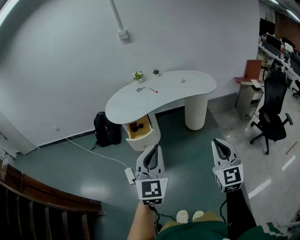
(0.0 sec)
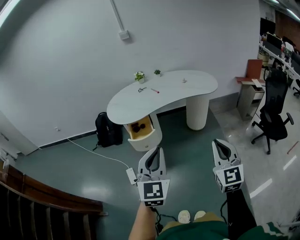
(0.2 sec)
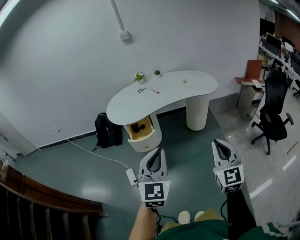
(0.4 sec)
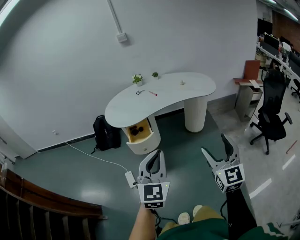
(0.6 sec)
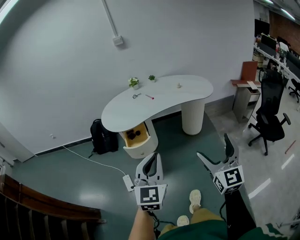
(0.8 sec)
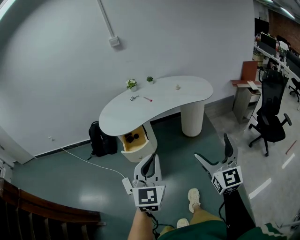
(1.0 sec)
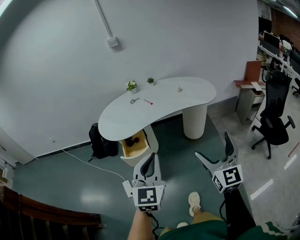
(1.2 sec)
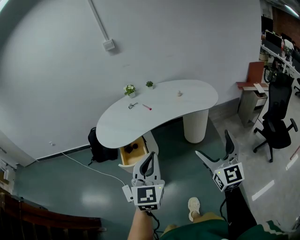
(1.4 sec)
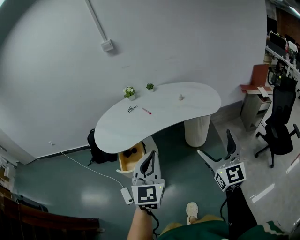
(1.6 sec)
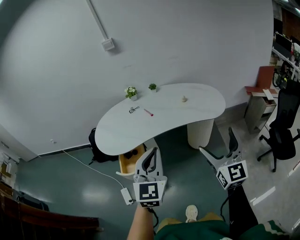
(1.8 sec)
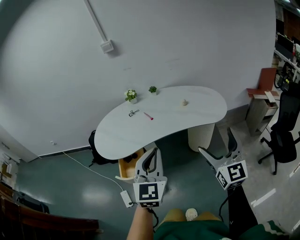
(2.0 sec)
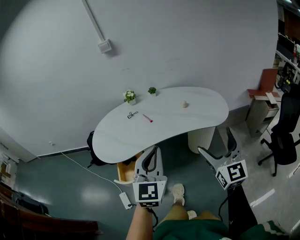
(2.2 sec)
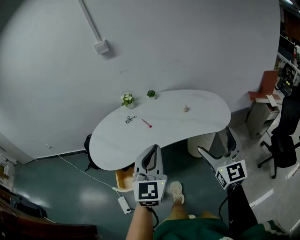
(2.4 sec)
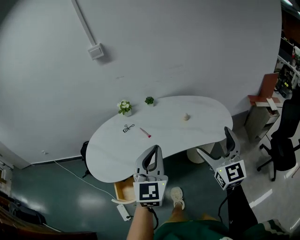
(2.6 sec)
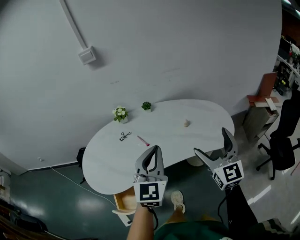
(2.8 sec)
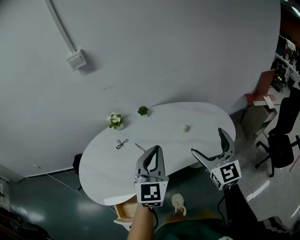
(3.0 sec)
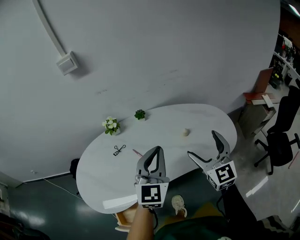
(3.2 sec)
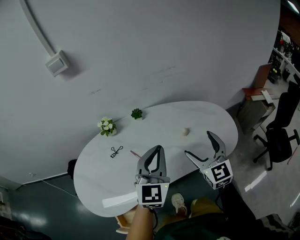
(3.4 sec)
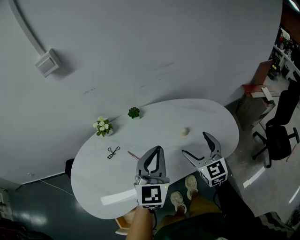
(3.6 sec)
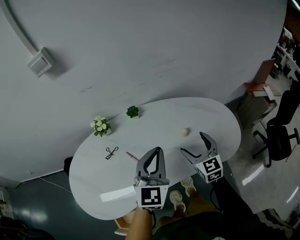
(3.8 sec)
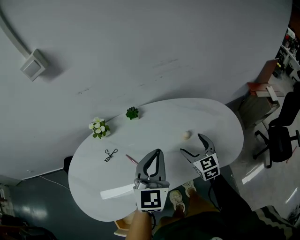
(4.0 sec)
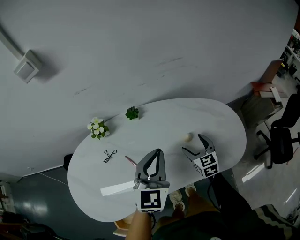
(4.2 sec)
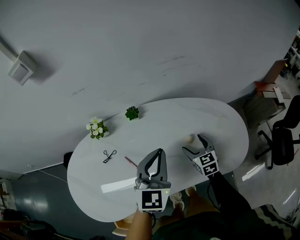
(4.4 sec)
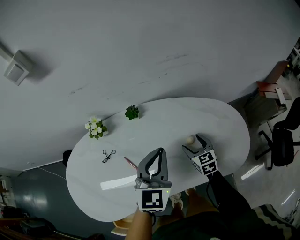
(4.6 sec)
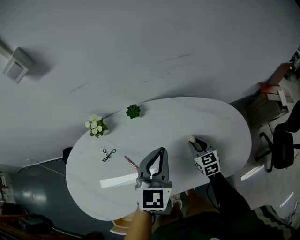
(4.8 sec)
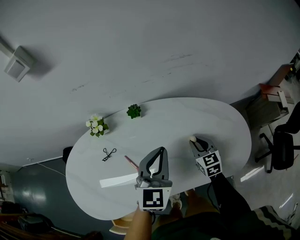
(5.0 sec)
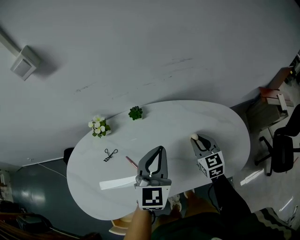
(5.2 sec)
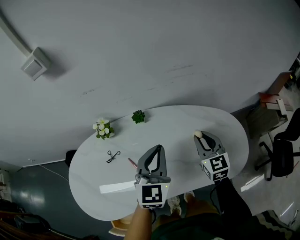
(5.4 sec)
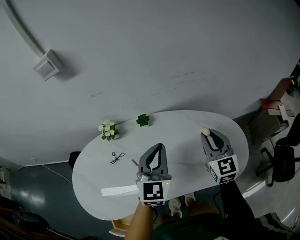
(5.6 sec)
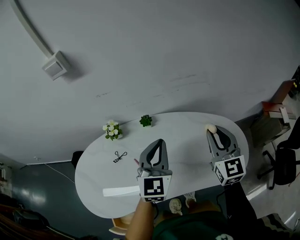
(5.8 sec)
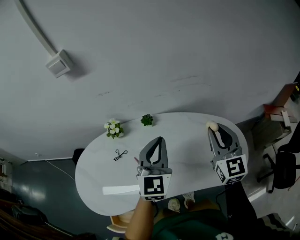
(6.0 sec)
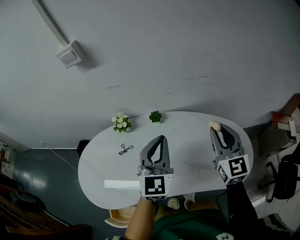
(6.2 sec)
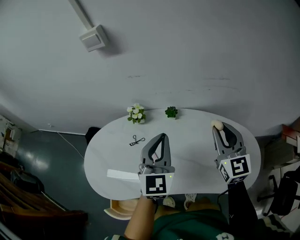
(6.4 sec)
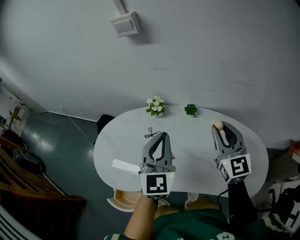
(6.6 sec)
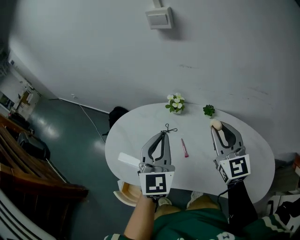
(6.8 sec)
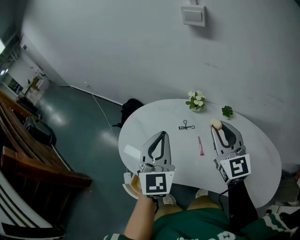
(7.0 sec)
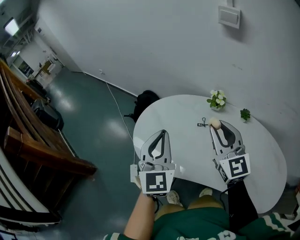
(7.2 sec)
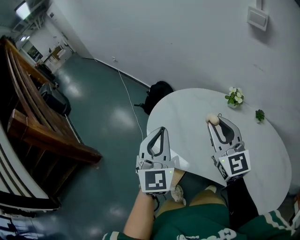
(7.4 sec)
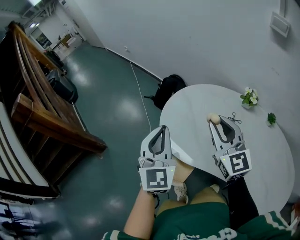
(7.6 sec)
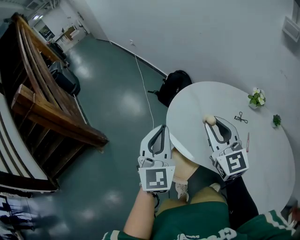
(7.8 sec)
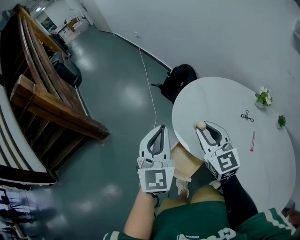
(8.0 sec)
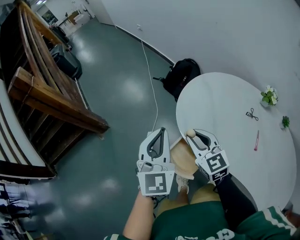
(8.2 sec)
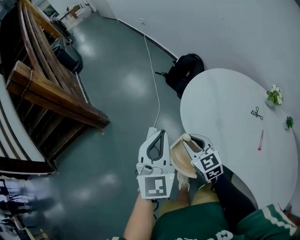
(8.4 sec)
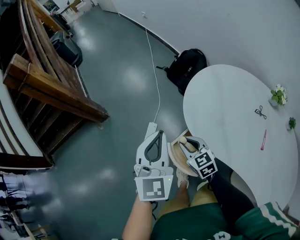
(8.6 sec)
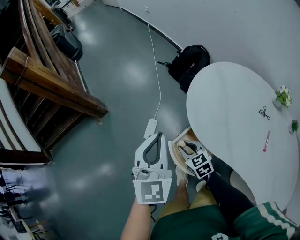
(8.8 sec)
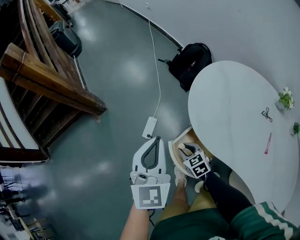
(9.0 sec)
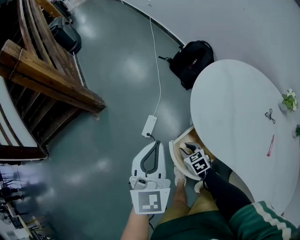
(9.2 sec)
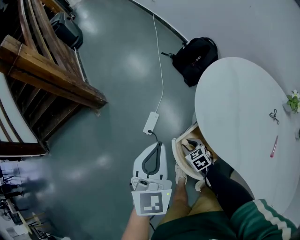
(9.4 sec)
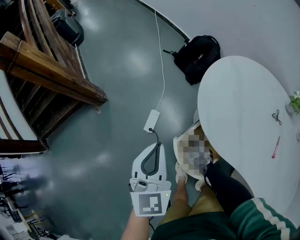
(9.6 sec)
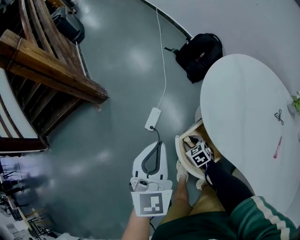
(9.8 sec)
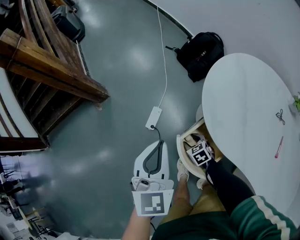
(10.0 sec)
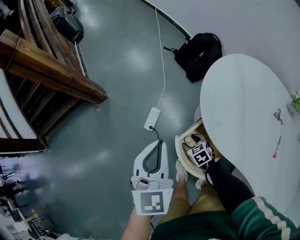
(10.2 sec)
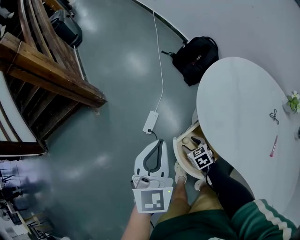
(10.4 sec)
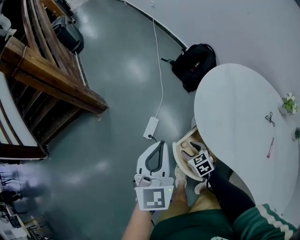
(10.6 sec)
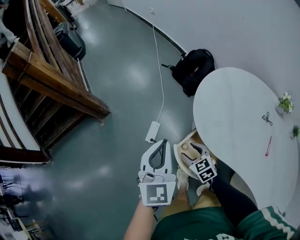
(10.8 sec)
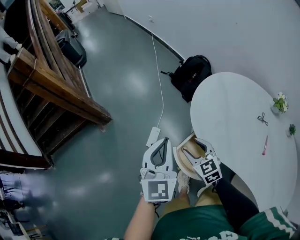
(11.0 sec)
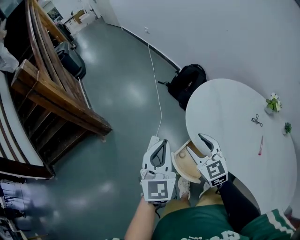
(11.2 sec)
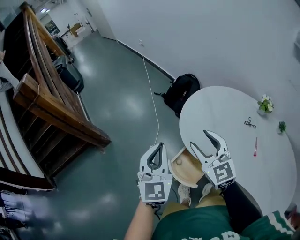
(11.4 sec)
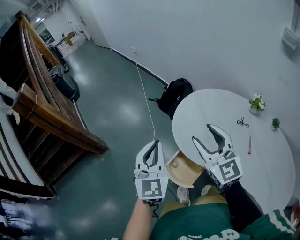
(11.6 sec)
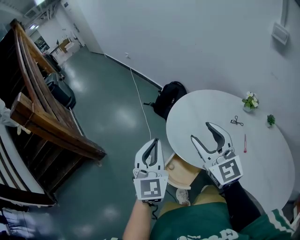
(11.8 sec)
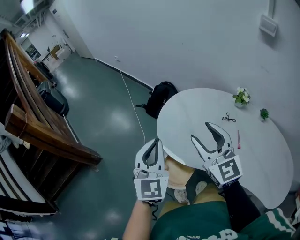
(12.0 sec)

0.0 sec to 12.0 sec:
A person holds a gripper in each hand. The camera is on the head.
0.0 sec to 1.6 sec: The grippers both shift forward by some 25 cm. The right gripper opens.
1.6 sec to 3.0 sec: Both grippers are carried forward, roughly 40 cm.
3.0 sec to 4.4 sec: The right gripper heads downward and forward, covering about 35 cm, and points its fingers roughly 30 degrees further downward, while the left gripper shifts some 20 cm forward and downward.
4.4 sec to 6.0 sec: The left gripper moves upward, roughly 10 cm. The right gripper heads upward, covering approximately 30 cm, angles its fingers upward, by some 30 degrees, and closes up.
6.0 sec to 7.6 sec: The two grippers travel together, approximately 60 cm. The right gripper rotates approximately 60 degrees; the left gripper swivels about 60 degrees.
7.6 sec to 9.0 sec: The left gripper moves to the left and downward, approximately 25 cm, while the right gripper shifts about 50 cm downward and to the left, and tilts its fingers roughly 40 degrees downward.
9.0 sec to 10.4 sec: The right gripper is displaced downward by approximately 5 cm.
10.4 sec to 12.0 sec: The right gripper travels upward by approximately 50 cm, and points its fingers approximately 50 degrees further upward. Meanwhile the left gripper travels upward by some 15 cm, and turns by roughly 20 degrees.

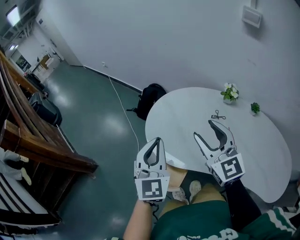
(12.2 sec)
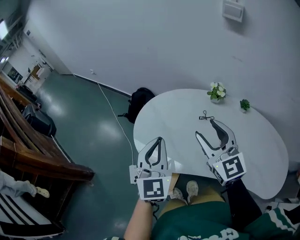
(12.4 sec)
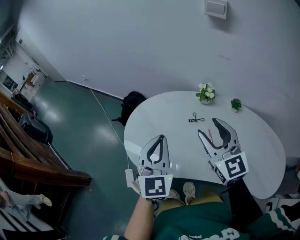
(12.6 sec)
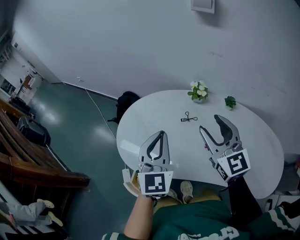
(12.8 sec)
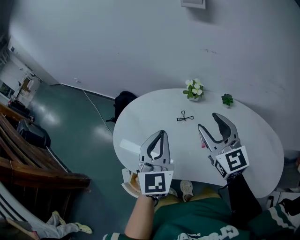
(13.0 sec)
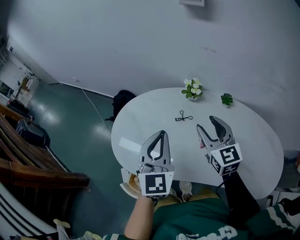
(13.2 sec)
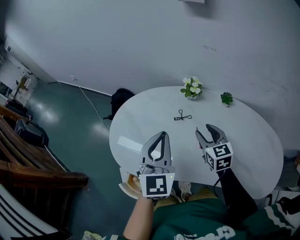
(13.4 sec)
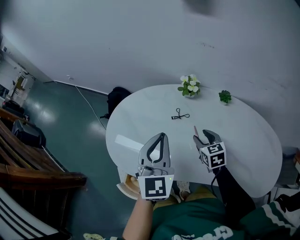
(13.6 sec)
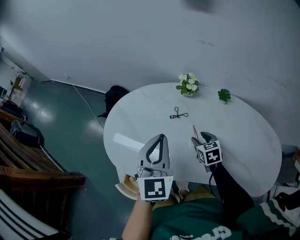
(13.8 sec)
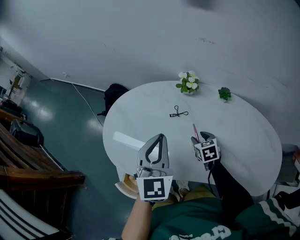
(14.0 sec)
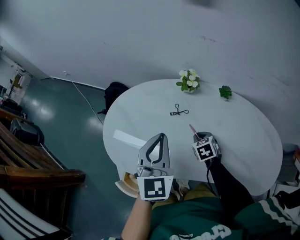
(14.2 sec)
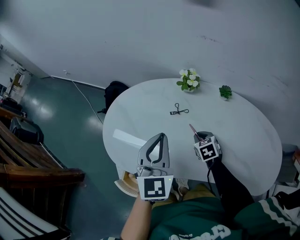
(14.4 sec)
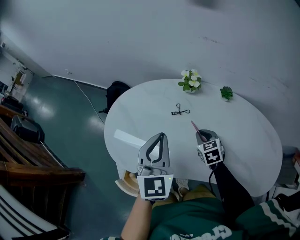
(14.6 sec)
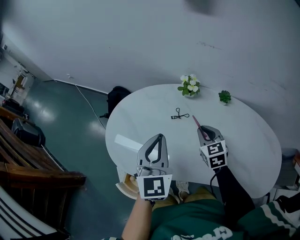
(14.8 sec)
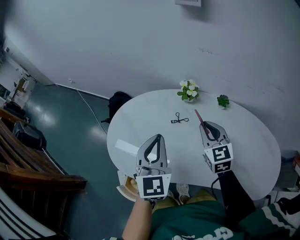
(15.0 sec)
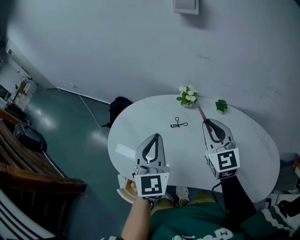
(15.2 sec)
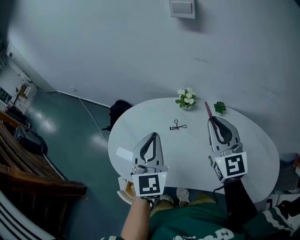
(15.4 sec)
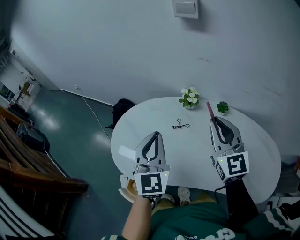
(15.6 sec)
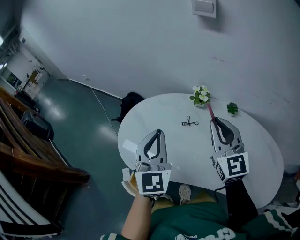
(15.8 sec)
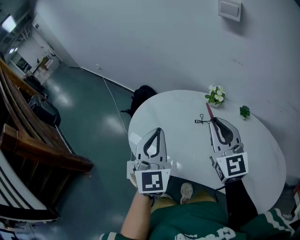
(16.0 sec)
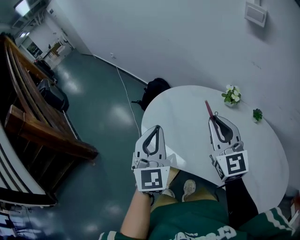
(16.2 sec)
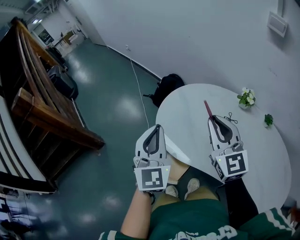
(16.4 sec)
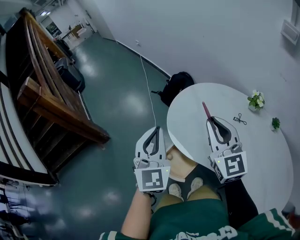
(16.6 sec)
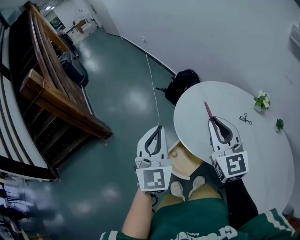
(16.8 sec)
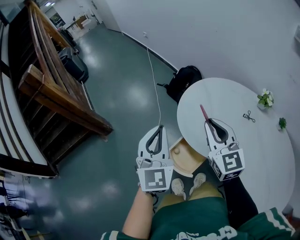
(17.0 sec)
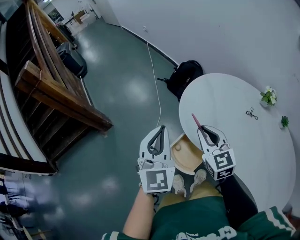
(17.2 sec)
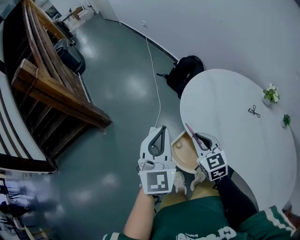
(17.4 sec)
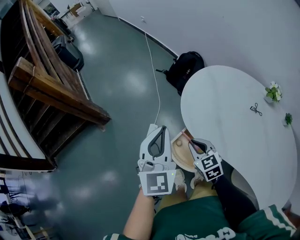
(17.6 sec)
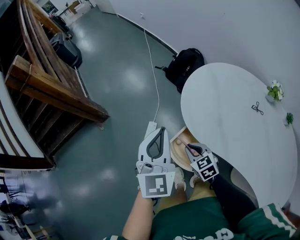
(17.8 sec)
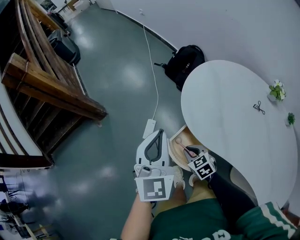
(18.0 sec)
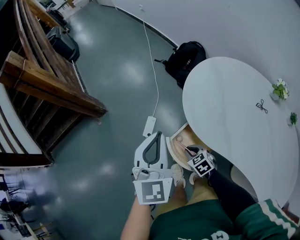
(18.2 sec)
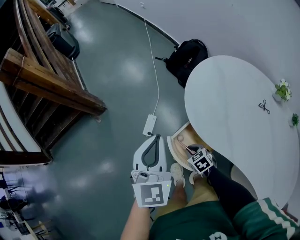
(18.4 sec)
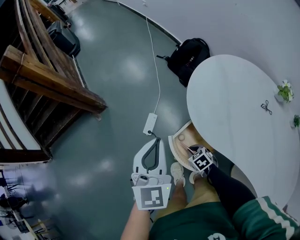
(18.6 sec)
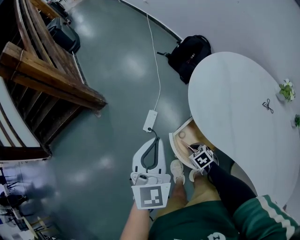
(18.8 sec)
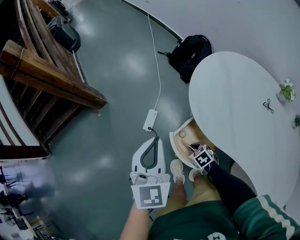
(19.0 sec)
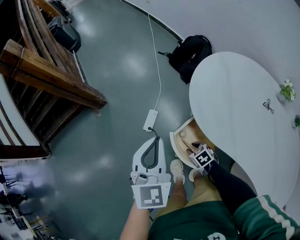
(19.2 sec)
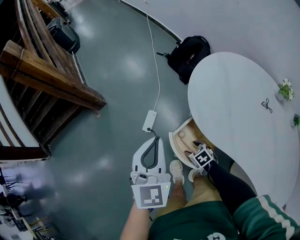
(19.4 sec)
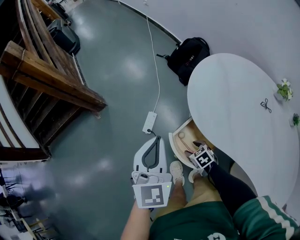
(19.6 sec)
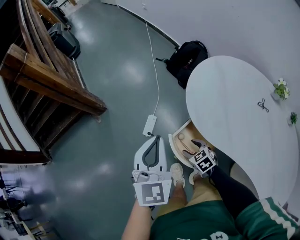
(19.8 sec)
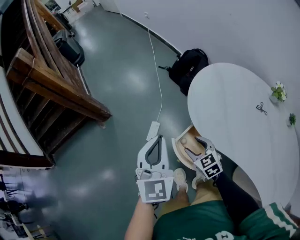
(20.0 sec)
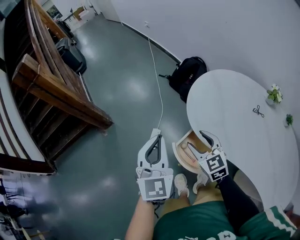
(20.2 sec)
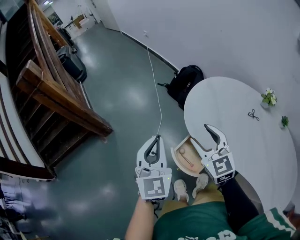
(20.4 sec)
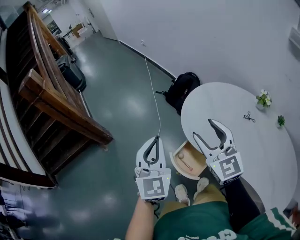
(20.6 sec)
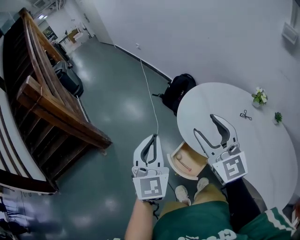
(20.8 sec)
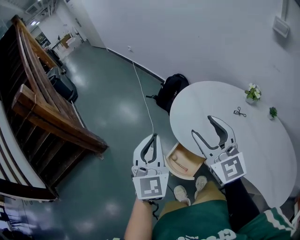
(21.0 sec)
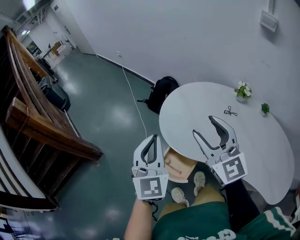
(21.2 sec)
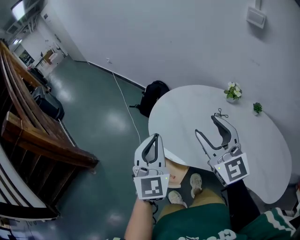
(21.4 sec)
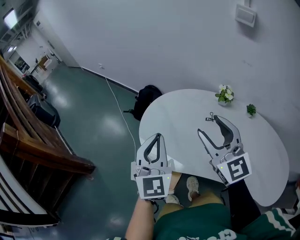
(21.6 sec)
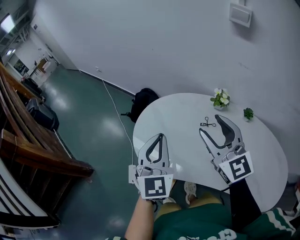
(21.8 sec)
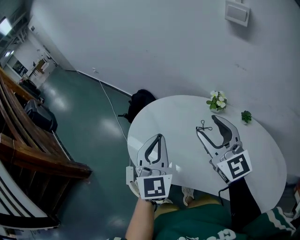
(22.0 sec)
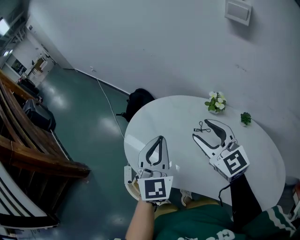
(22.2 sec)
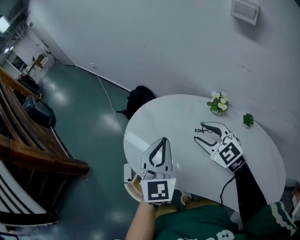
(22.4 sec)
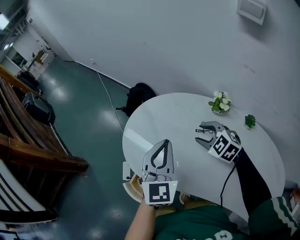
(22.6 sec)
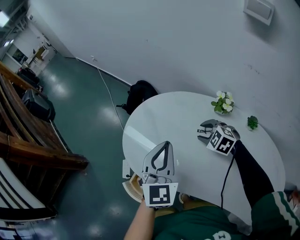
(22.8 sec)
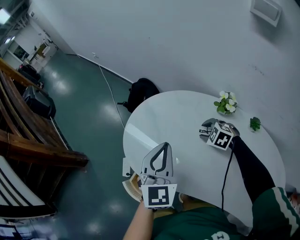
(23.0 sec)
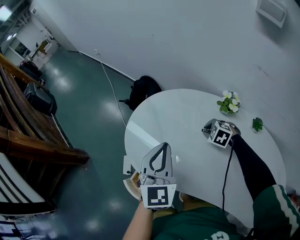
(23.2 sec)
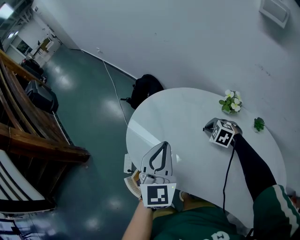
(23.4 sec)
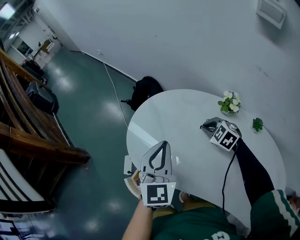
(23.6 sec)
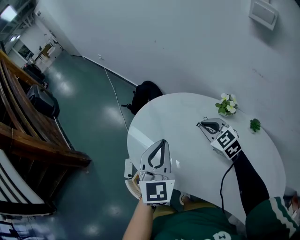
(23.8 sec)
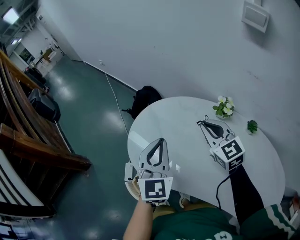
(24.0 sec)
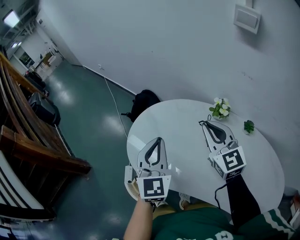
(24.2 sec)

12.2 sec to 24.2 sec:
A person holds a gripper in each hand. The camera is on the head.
12.2 sec to 13.8 sec: The right gripper goes about 40 cm downward and to the right, and points its fingers about 40 degrees further downward; the left gripper shifts roughly 25 cm to the right.
13.8 sec to 15.2 sec: The right gripper goes some 25 cm upward, and points its fingers approximately 40 degrees further upward.
15.2 sec to 16.6 sec: The right gripper changes place by some 30 cm, and turns by about 30 degrees. Meanwhile the left gripper changes place by approximately 30 cm, and turns by about 30 degrees.
16.6 sec to 18.2 sec: The left gripper travels downward and to the left by approximately 15 cm, while the right gripper moves downward, about 40 cm, and tips its fingers downward by about 50 degrees.
18.2 sec to 19.8 sec: The right gripper travels downward and back again, about 10 cm each way, and opens.
19.8 sec to 21.2 sec: The left gripper goes roughly 15 cm upward; the right gripper goes about 50 cm upward, and tips its fingers upward by roughly 50 degrees.
21.2 sec to 22.6 sec: The right gripper goes roughly 35 cm to the right, downward and forward, and angles its fingers downward, by some 40 degrees. Meanwhile the left gripper moves to the right and forward, some 30 cm.
22.6 sec to 24.2 sec: The right gripper goes approximately 15 cm upward, and angles its fingers upward, by some 40 degrees.
